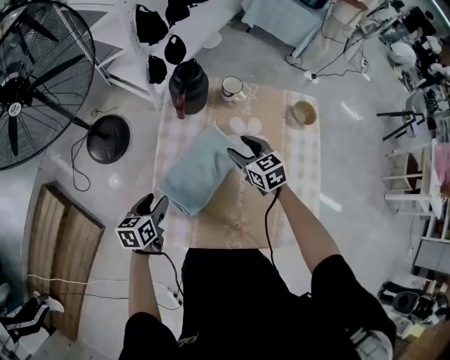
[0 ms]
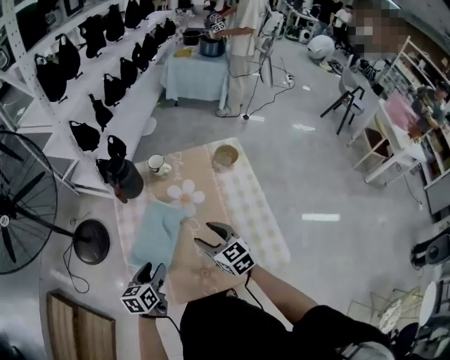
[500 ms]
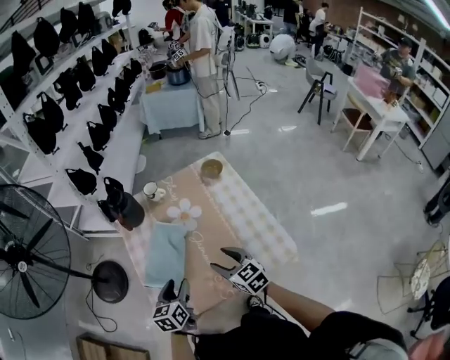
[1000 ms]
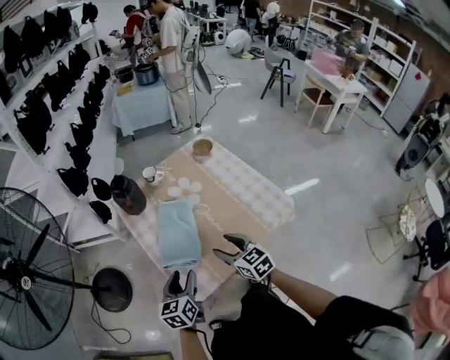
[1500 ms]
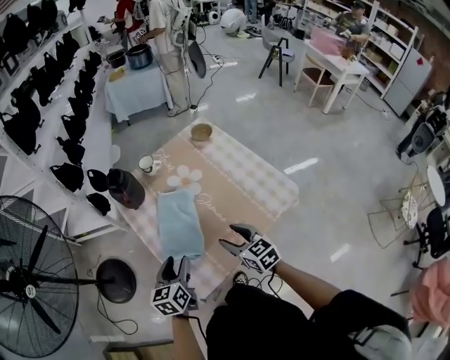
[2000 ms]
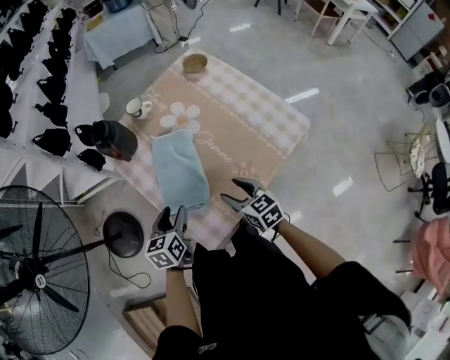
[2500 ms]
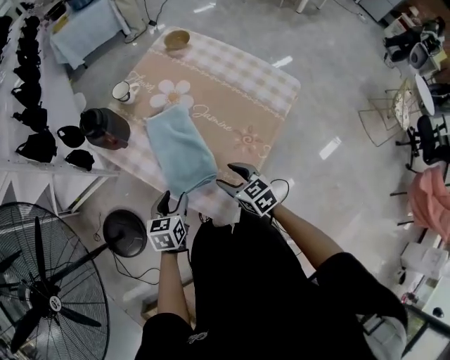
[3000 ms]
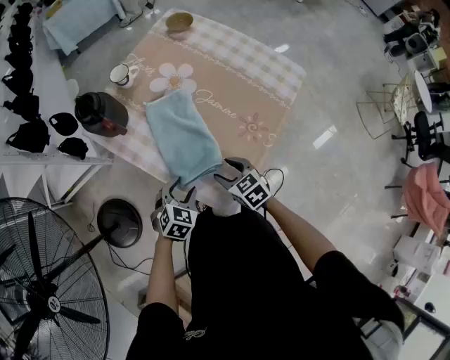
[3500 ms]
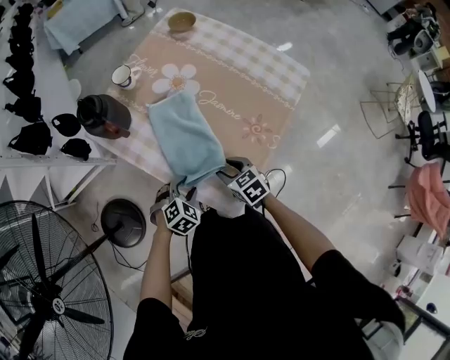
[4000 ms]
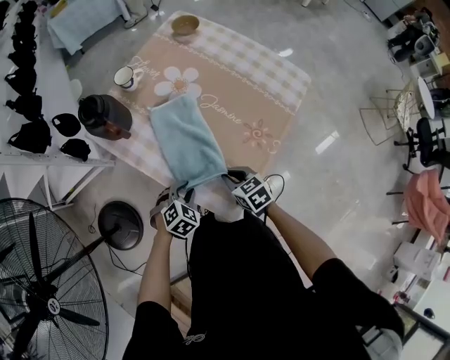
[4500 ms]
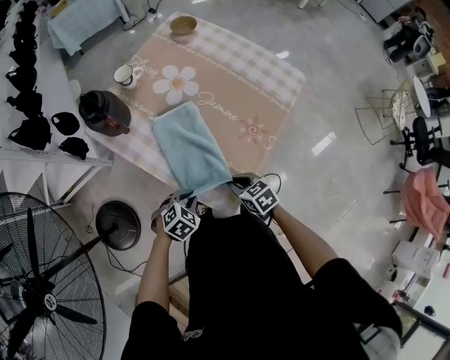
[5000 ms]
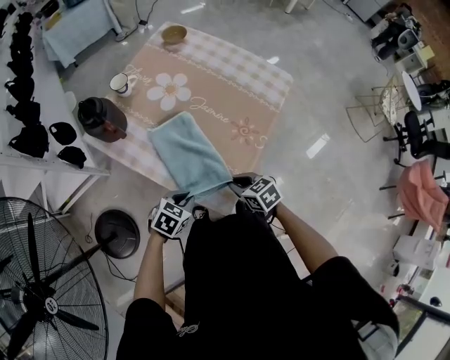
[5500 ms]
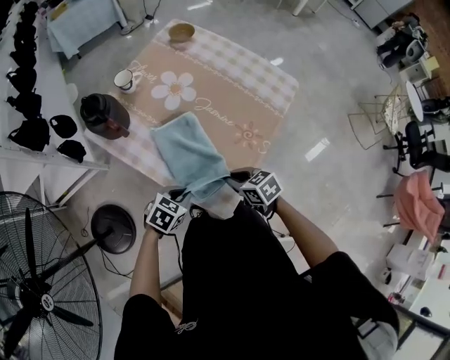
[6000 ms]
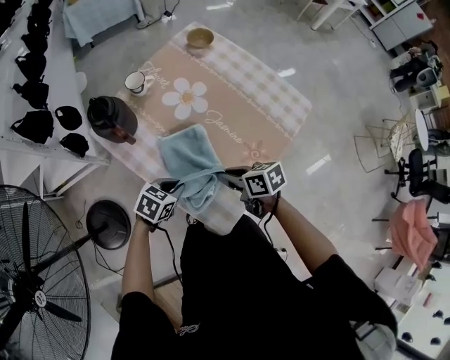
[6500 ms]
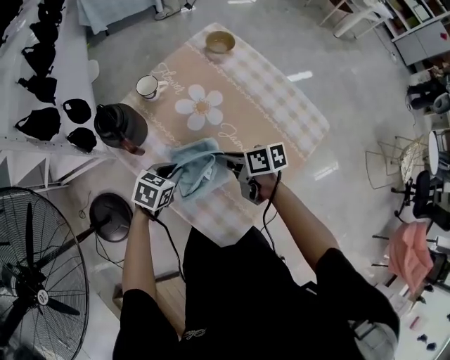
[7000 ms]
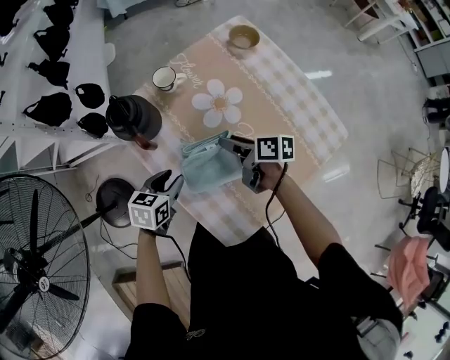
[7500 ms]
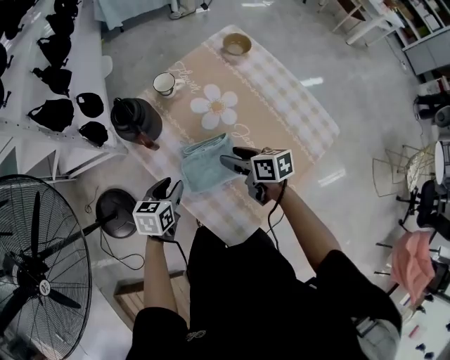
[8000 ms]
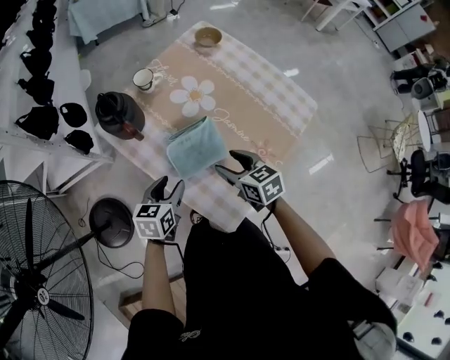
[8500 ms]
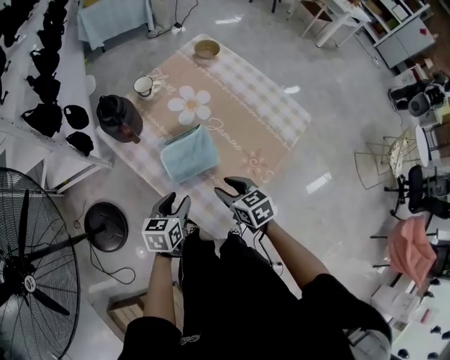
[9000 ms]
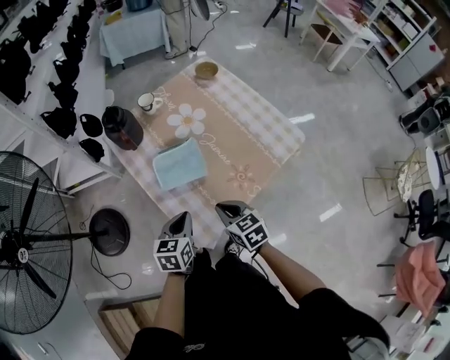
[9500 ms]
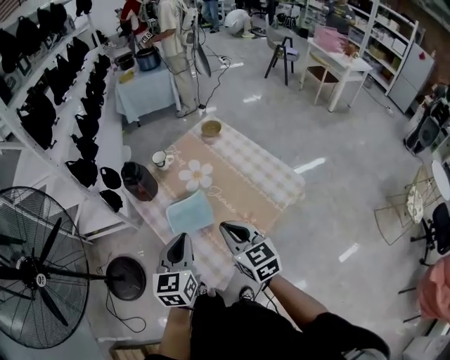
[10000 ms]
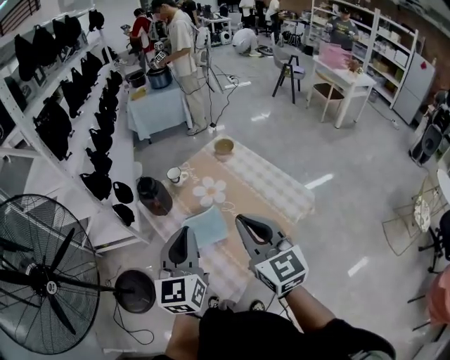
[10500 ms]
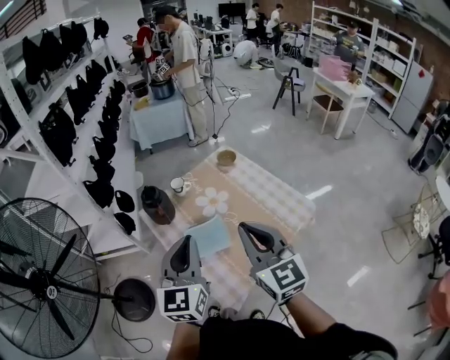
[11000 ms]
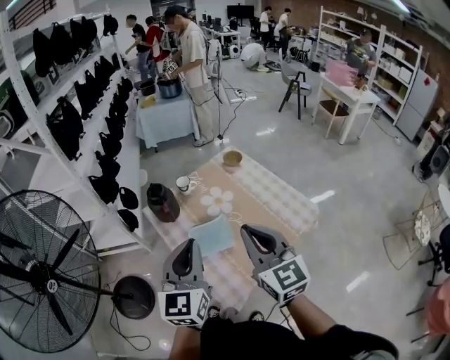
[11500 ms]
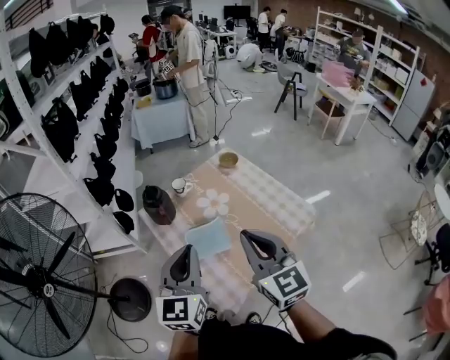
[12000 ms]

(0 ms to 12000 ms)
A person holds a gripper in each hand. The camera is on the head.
0 ms - 2000 ms: The right gripper ends up roughly 25 cm from where it was, and changes its angle by approximately 40 degrees. Meanwhile the left gripper goes some 10 cm upward, and rotates some 40 degrees.
2000 ms - 4000 ms: The two grippers go some 20 cm downward. The right gripper swivels some 30 degrees, while the left gripper rotates around the line of its fingers by approximately 70 degrees, clockwise from behind.
4000 ms - 6000 ms: Both grippers travel together upward, about 5 cm. The right gripper closes its fingers, while the left gripper rotates about 30 degrees, and closes.
6000 ms - 8000 ms: The left gripper changes place by roughly 20 cm, turns by roughly 50 degrees, and opens, while the right gripper changes place by some 20 cm, and opens up.
8000 ms - 10000 ms: The right gripper goes some 30 cm upward and backward, turns by approximately 40 degrees, and closes up. Meanwhile the left gripper moves upward, backward and to the right, about 30 cm, swivels about 40 degrees, and closes up.
10000 ms - 12000 ms: The right gripper travels upward by some 15 cm, and swivels some 20 degrees; the left gripper travels upward and to the left by some 15 cm.

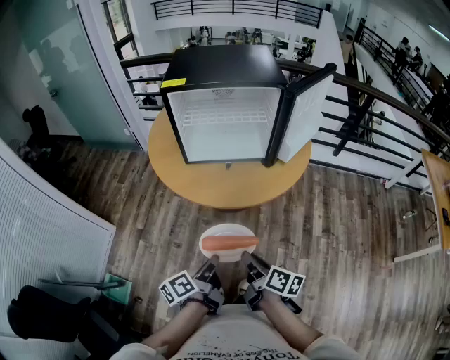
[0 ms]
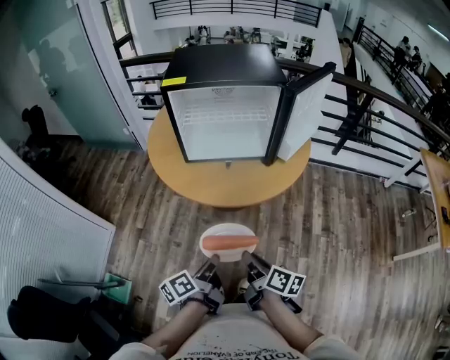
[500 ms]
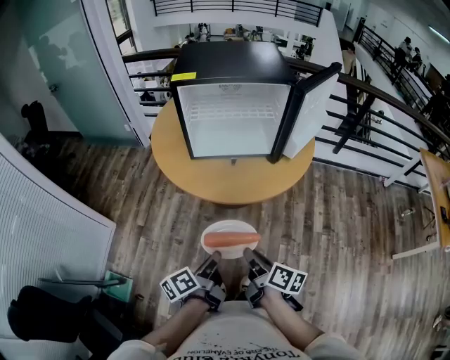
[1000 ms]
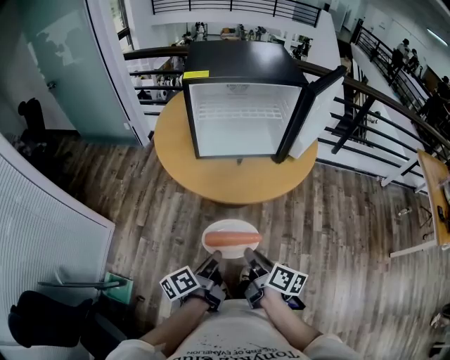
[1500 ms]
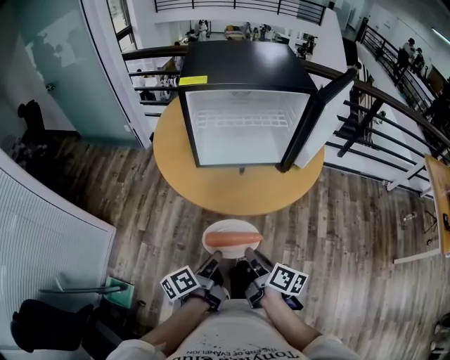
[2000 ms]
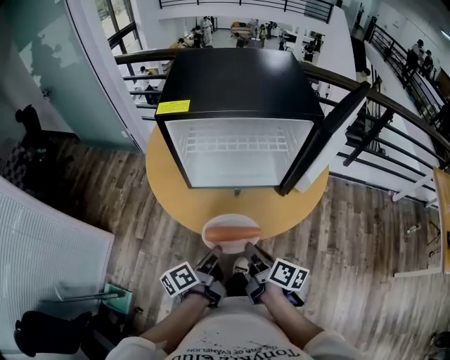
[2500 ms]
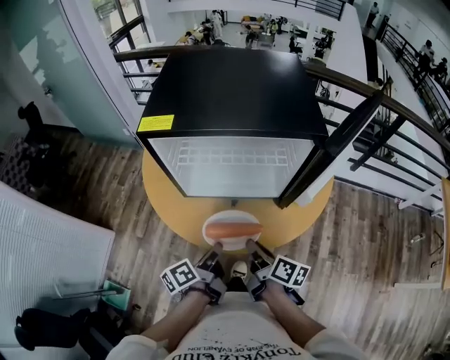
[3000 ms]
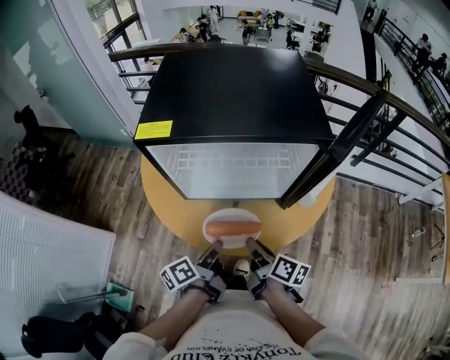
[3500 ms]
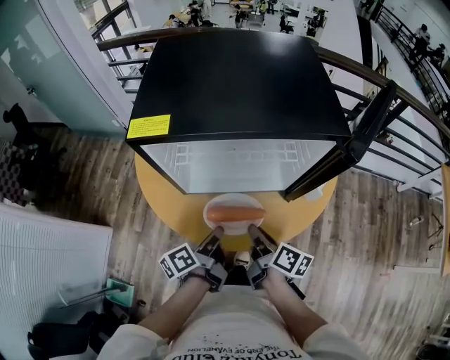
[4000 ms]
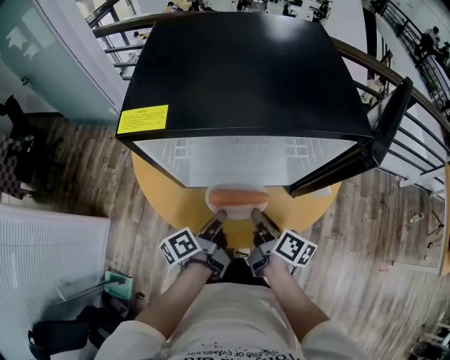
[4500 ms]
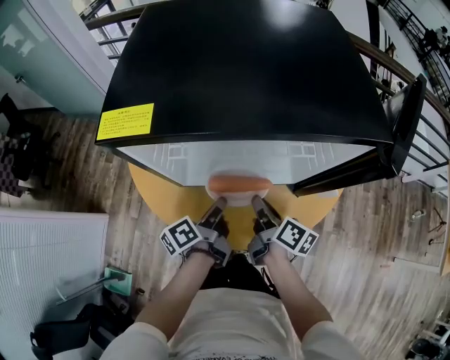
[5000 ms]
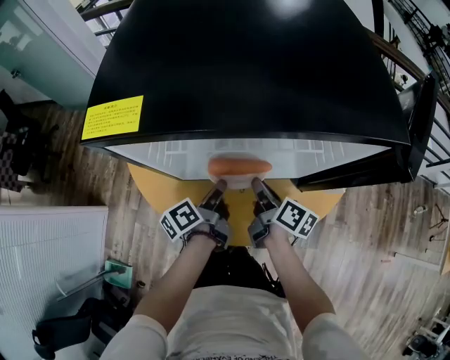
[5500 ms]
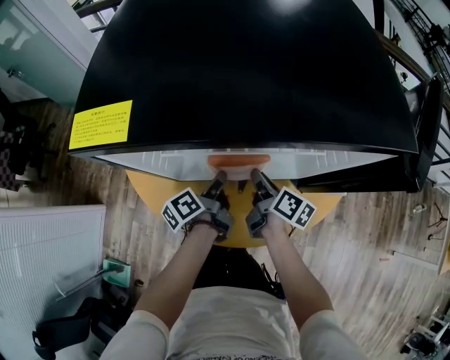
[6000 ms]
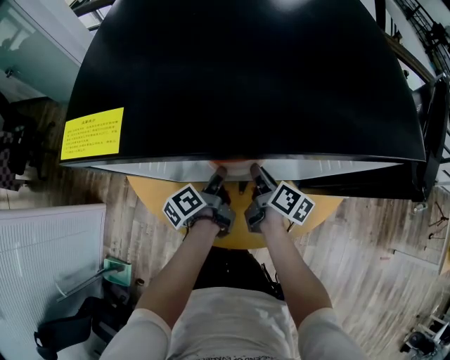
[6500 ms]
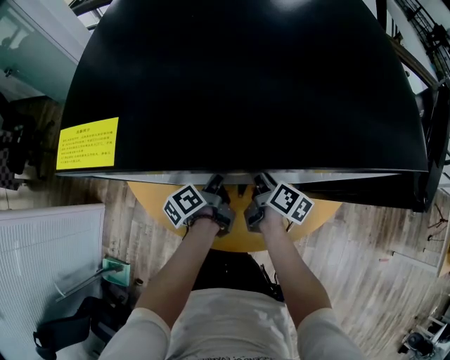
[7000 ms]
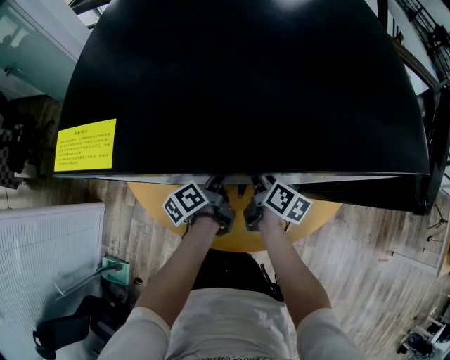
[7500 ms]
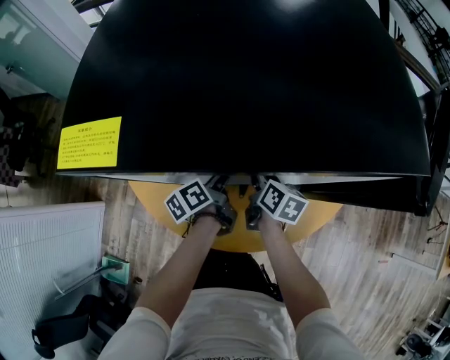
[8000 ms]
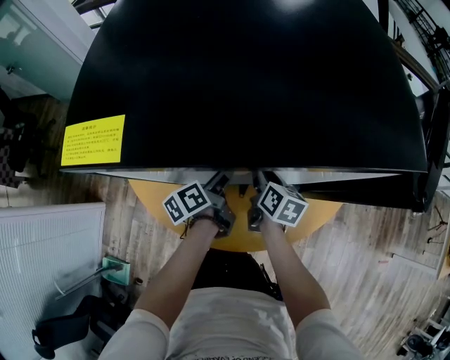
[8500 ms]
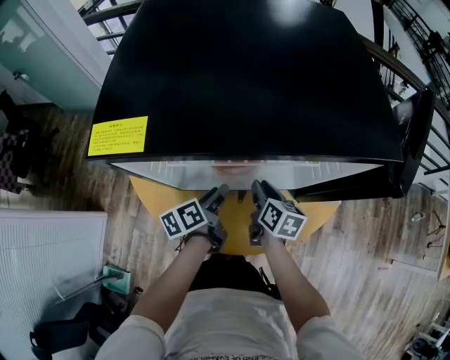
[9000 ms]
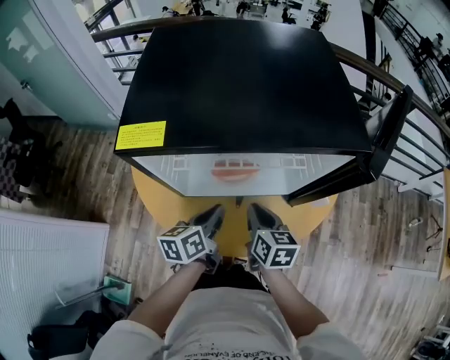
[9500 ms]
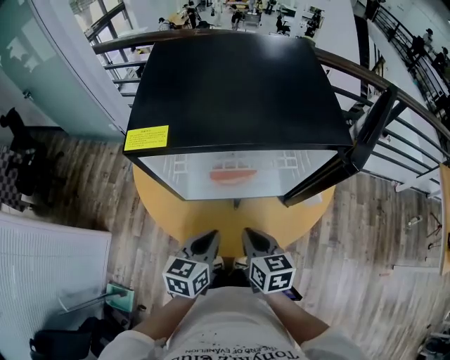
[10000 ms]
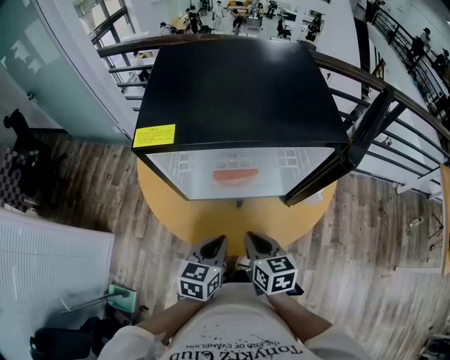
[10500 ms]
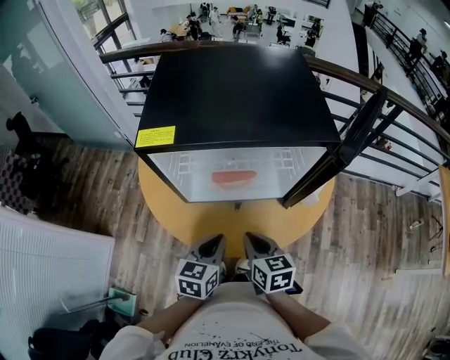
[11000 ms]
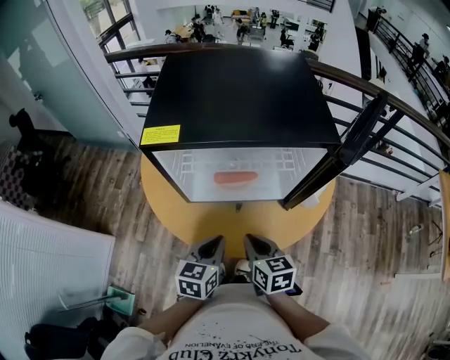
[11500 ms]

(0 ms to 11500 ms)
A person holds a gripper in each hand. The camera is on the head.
0 ms - 2000 ms: The right gripper ends up approximately 10 cm from where it was.
2000 ms - 4000 ms: The right gripper shifts by about 25 cm.
4000 ms - 6000 ms: The right gripper changes place by some 20 cm.
7500 ms - 9500 ms: The right gripper changes place by some 15 cm, and swivels approximately 30 degrees.
9500 ms - 11500 ms: The right gripper changes place by approximately 10 cm.

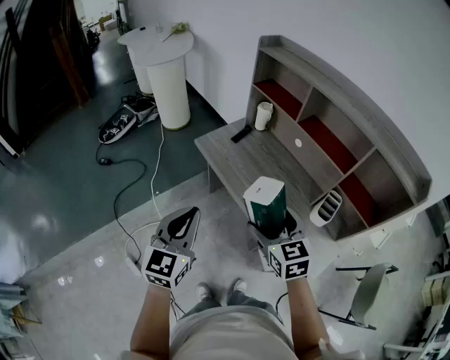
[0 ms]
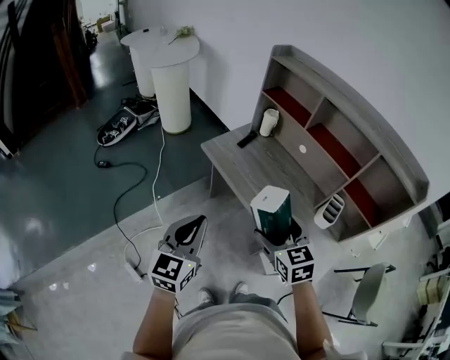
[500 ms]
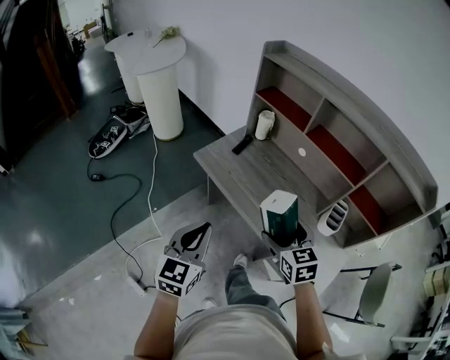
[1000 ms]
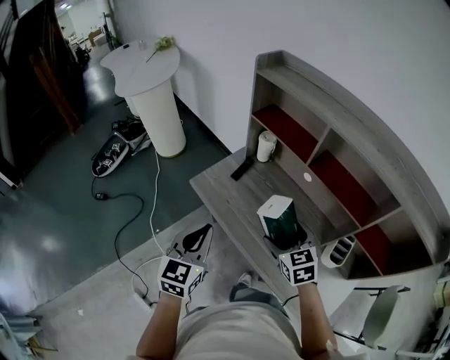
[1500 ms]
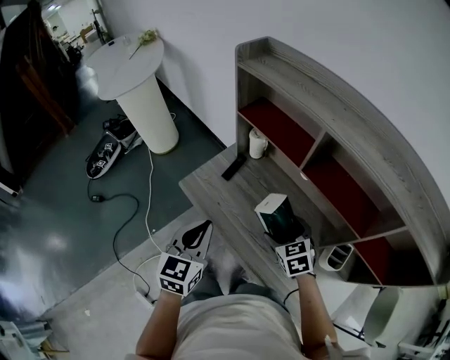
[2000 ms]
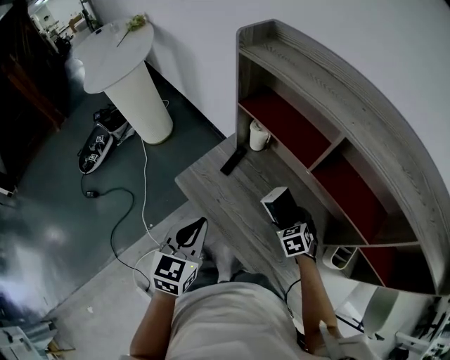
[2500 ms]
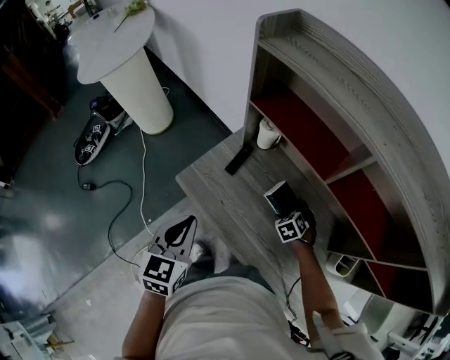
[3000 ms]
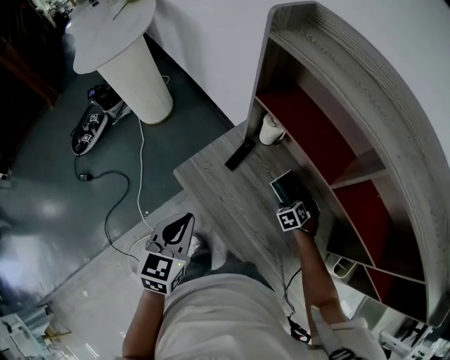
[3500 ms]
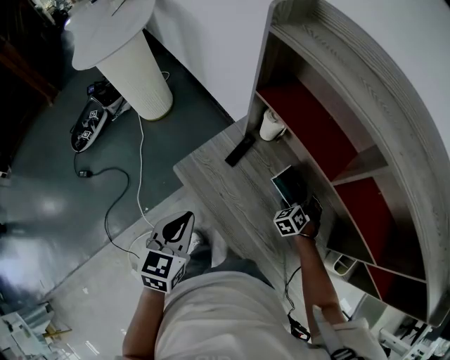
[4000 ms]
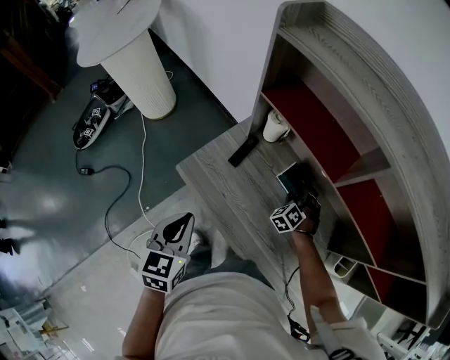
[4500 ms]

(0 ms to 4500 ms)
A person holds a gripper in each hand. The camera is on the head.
0 ms - 2000 ms: The left gripper travels forward by approximately 30 cm. The right gripper travels forward and downward by roughly 30 cm.
2000 ms - 4500 ms: The left gripper moves to the left, downward and forward, about 15 cm, while the right gripper shifts about 25 cm downward and forward, rotates approximately 40 degrees, and closes its fingers.
